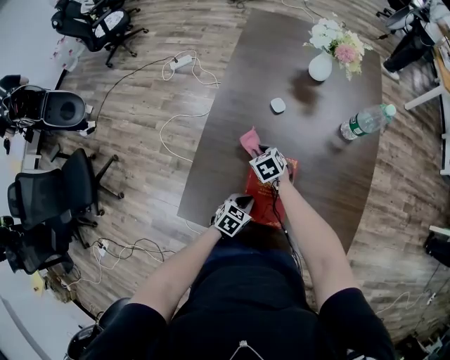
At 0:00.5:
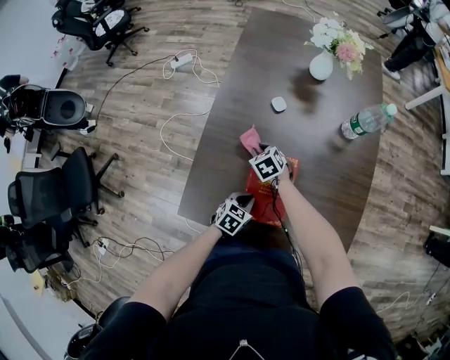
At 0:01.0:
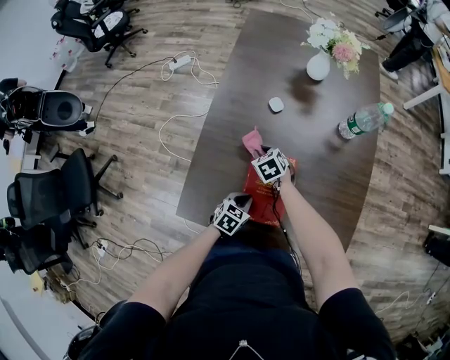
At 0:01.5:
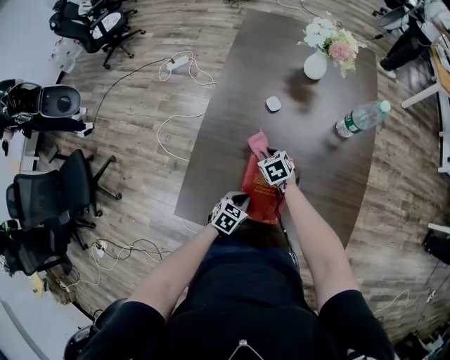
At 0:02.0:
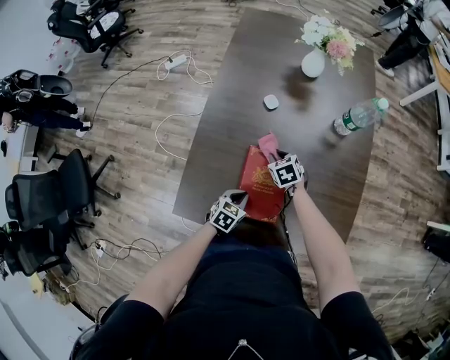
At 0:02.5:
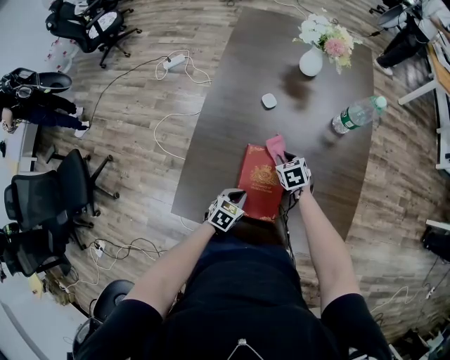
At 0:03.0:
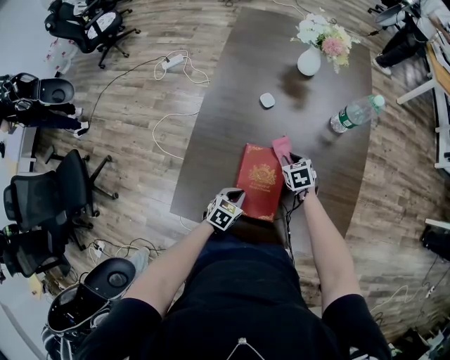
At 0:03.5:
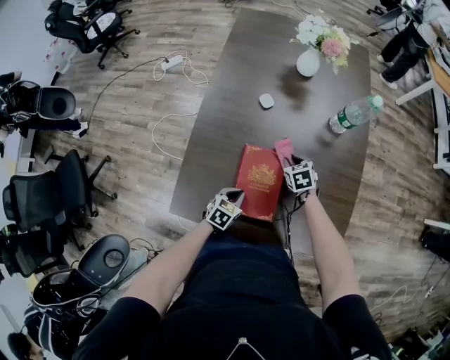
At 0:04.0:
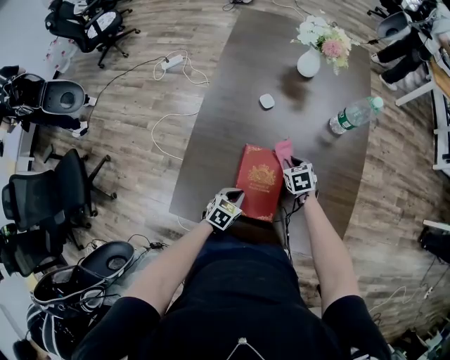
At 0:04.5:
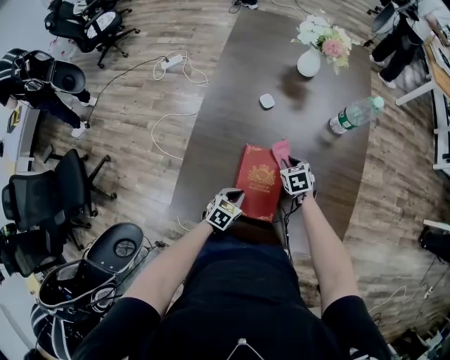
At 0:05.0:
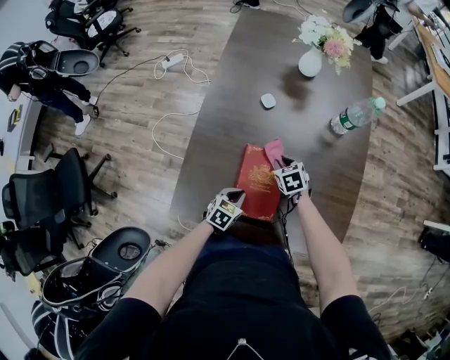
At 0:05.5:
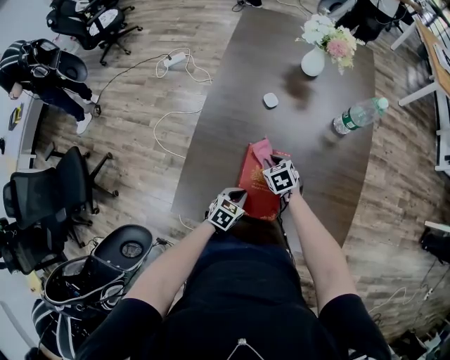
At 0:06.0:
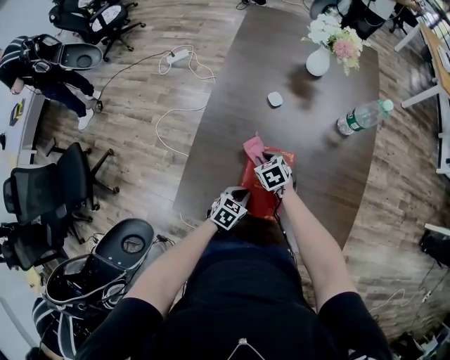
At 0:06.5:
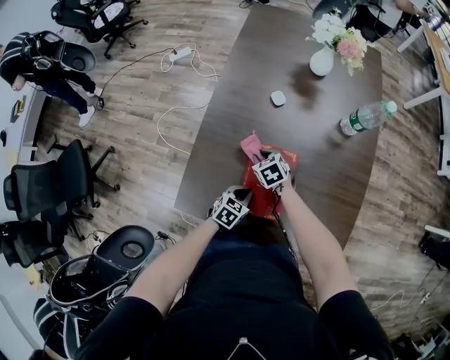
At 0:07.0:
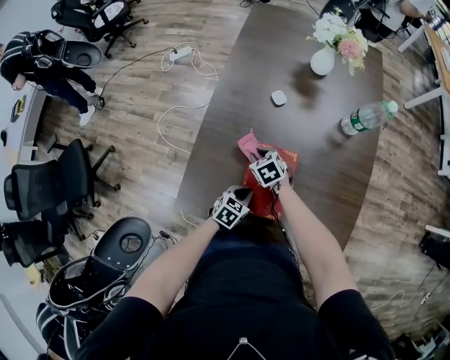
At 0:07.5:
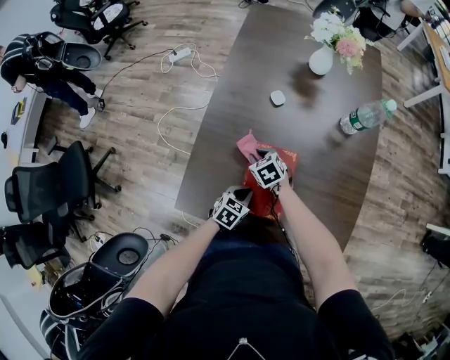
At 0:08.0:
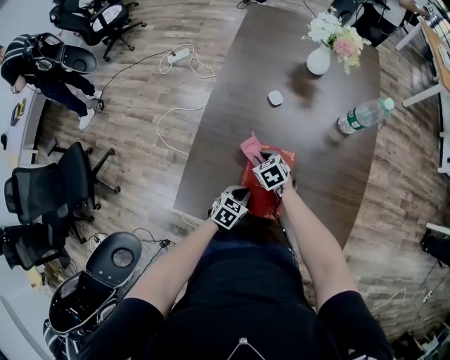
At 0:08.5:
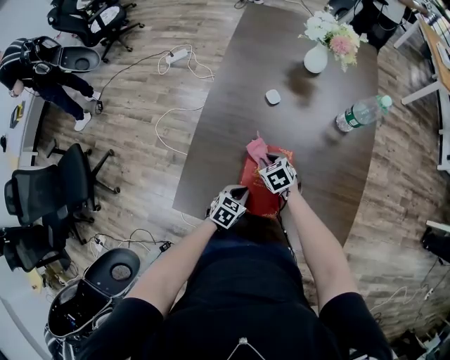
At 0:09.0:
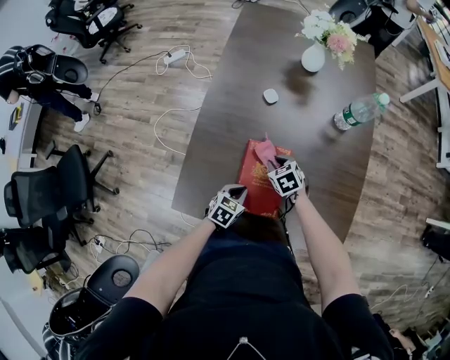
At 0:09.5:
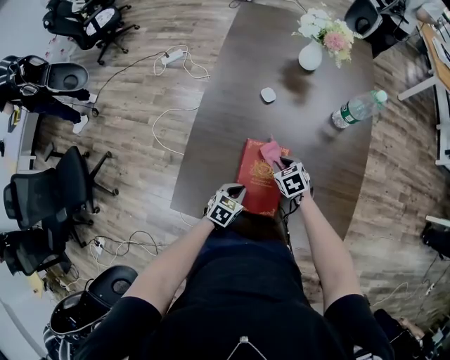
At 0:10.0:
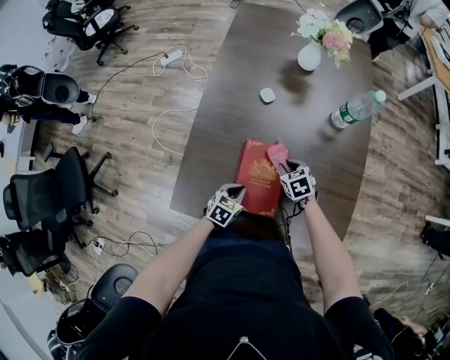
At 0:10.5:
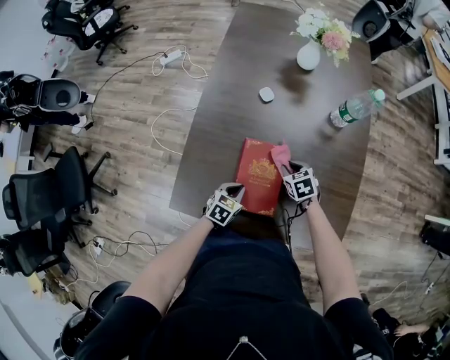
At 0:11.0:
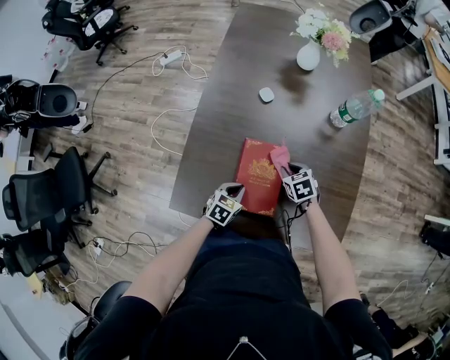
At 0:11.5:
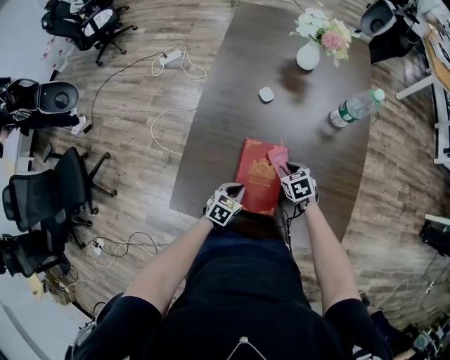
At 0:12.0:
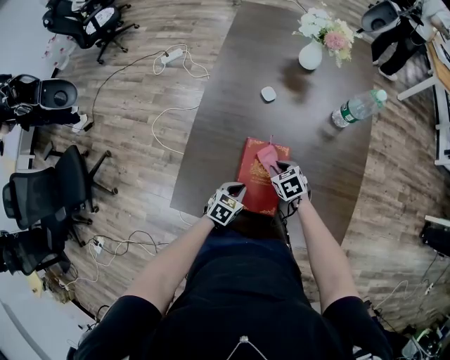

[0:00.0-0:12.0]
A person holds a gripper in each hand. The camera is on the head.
0:00.0 to 0:02.0: The right gripper moves to the right, some 10 cm.
0:02.0 to 0:04.0: The right gripper shifts approximately 10 cm to the right.
0:04.0 to 0:06.0: The right gripper heads to the left, covering roughly 15 cm.
0:06.0 to 0:08.0: The grippers move only a little.
0:08.0 to 0:10.0: The right gripper shifts about 15 cm to the right.
0:10.0 to 0:12.0: There are only small adjustments of the grippers.

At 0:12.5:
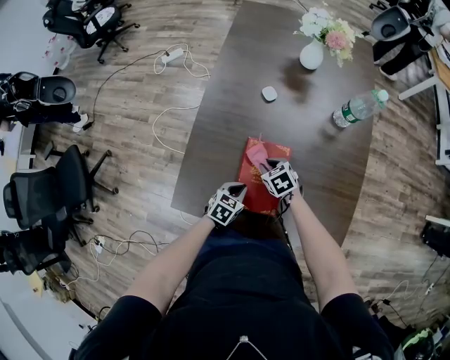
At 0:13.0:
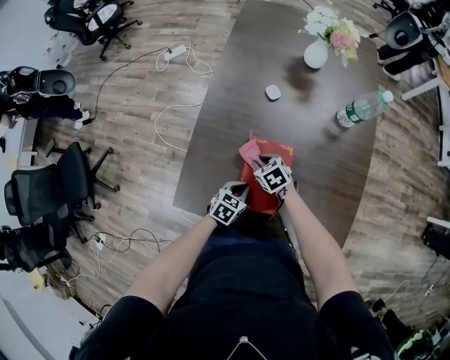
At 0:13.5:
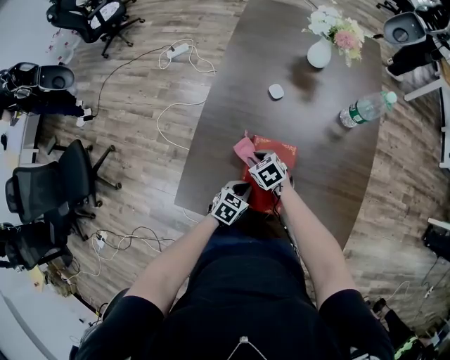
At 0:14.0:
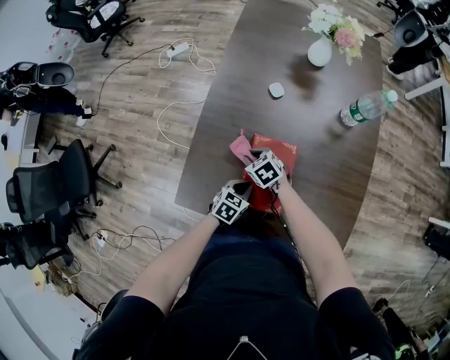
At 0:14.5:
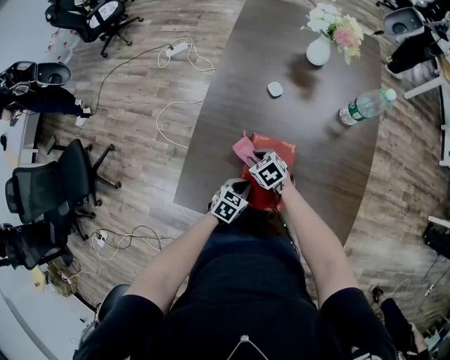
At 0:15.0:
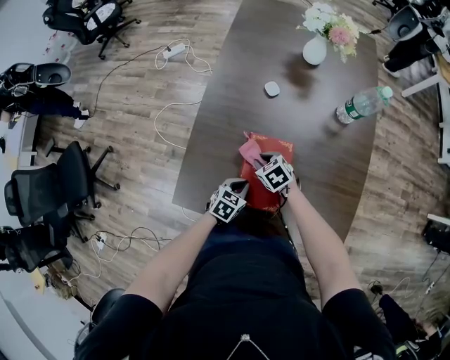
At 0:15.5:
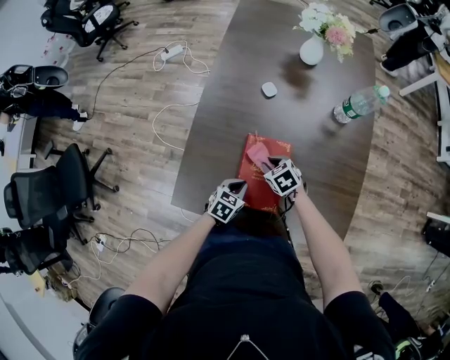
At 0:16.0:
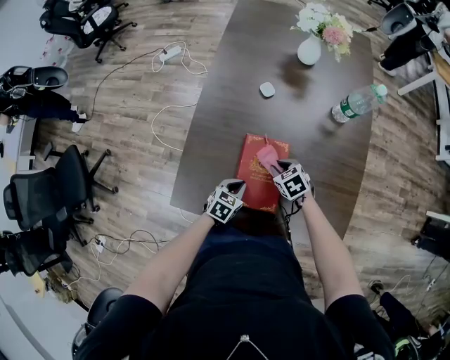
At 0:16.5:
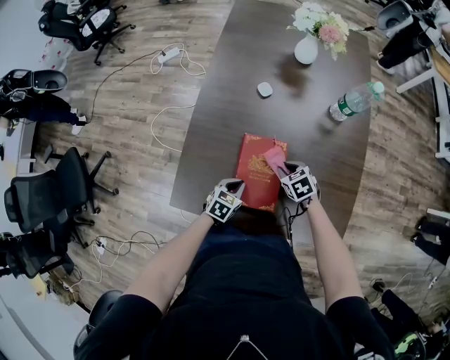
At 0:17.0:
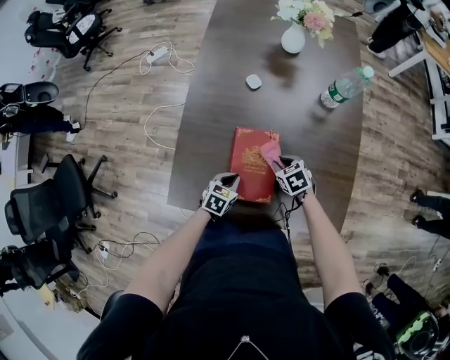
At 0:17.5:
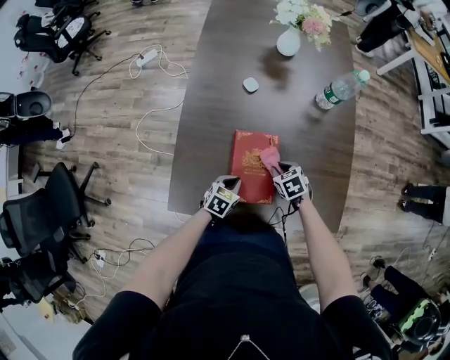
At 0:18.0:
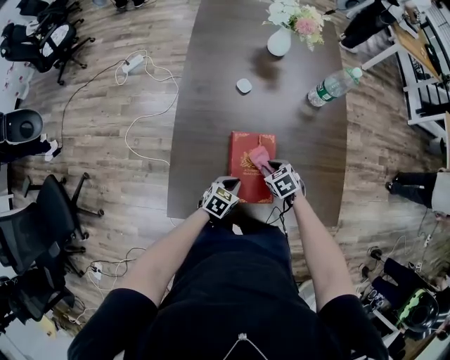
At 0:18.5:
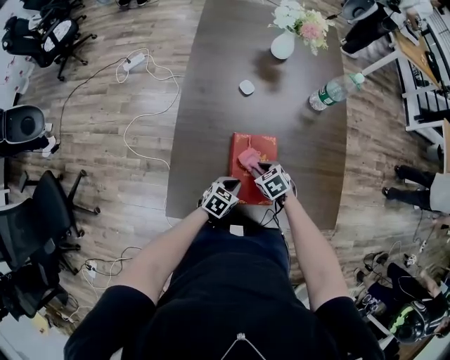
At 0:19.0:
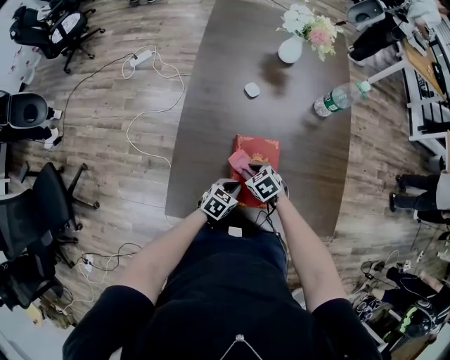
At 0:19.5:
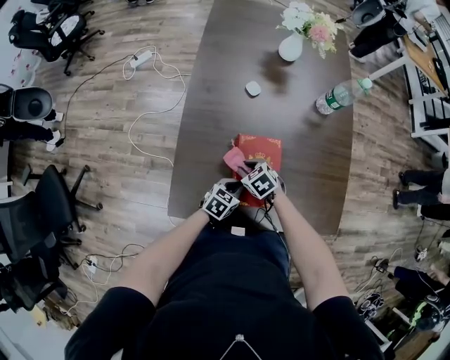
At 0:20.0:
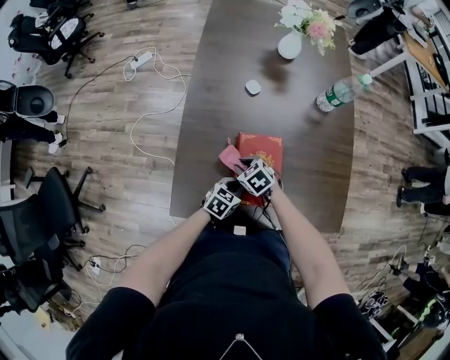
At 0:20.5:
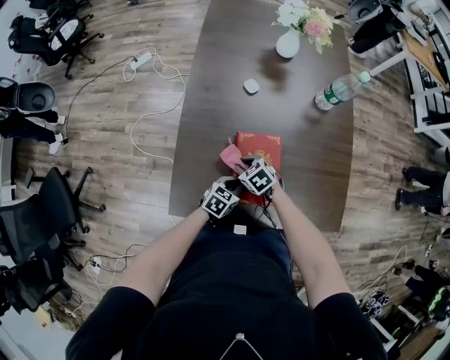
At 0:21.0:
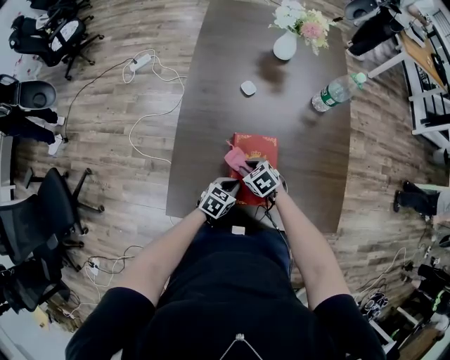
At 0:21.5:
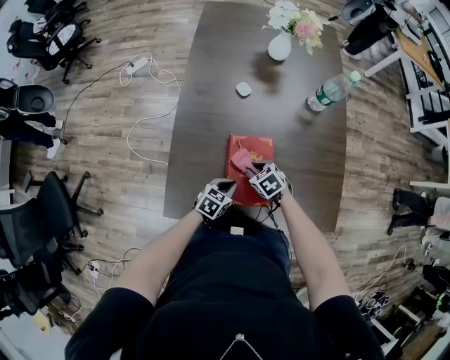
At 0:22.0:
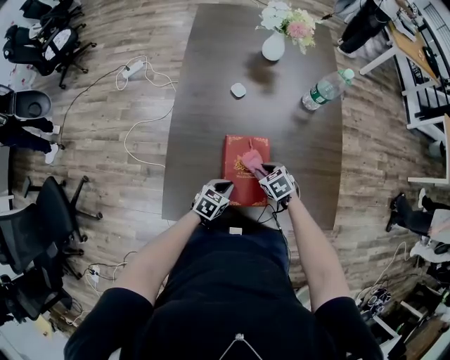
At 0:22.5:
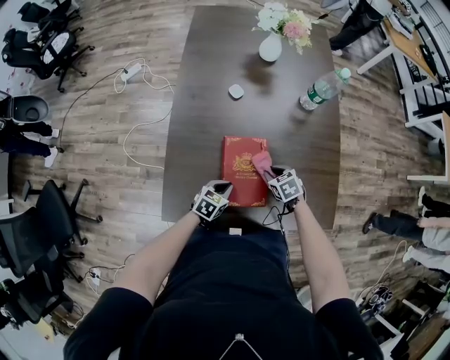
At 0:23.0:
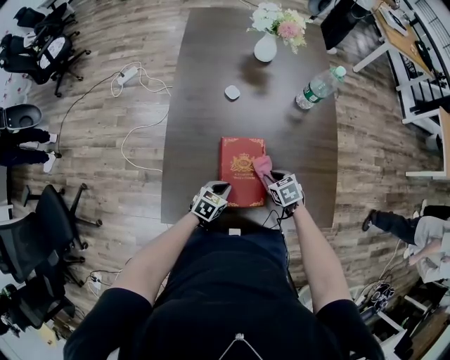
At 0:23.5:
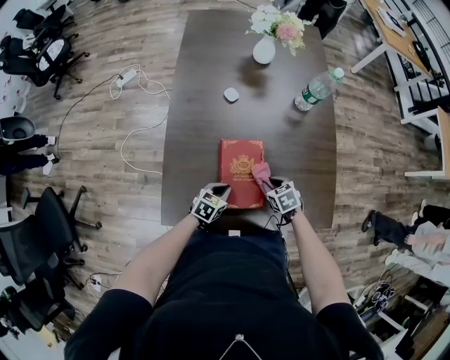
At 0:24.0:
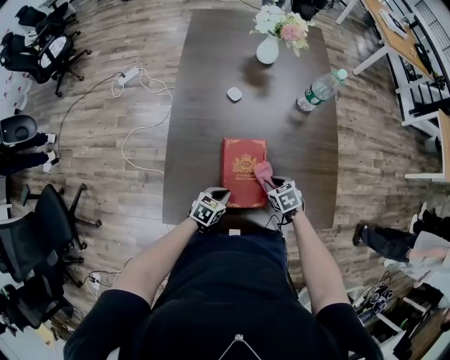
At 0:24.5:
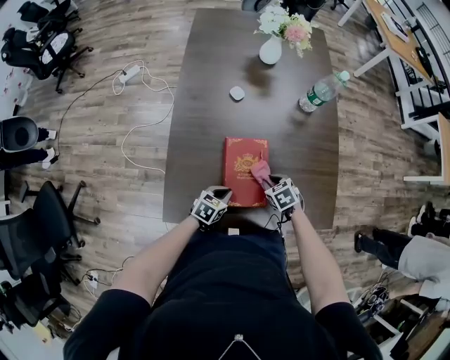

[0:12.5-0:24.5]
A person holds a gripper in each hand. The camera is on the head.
0:12.5 to 0:14.5: The right gripper shifts some 5 cm to the left.
0:14.5 to 0:16.5: The right gripper goes approximately 15 cm to the right.
0:16.5 to 0:18.5: The right gripper heads to the left, covering roughly 5 cm.
0:18.5 to 0:20.5: The right gripper heads to the left, covering roughly 10 cm.
0:20.5 to 0:22.5: The right gripper moves to the right, some 15 cm.
0:22.5 to 0:24.5: The grippers stay close to where they were, moving slightly.

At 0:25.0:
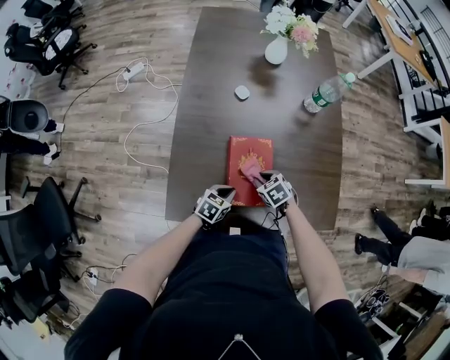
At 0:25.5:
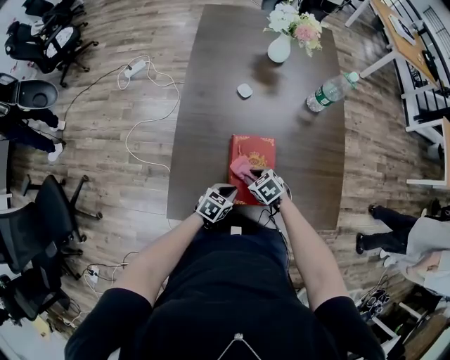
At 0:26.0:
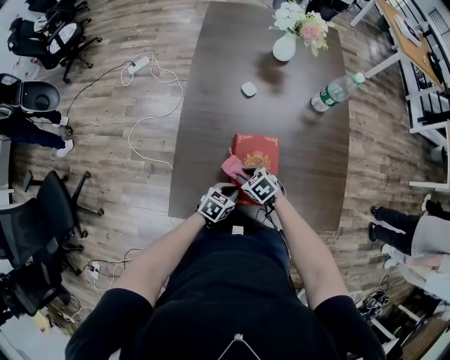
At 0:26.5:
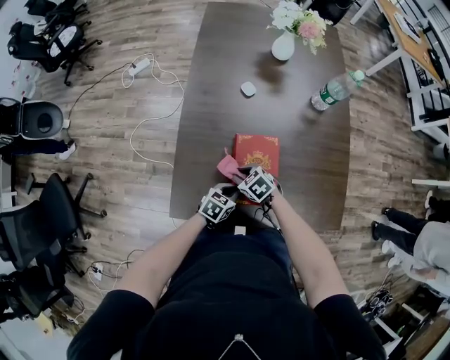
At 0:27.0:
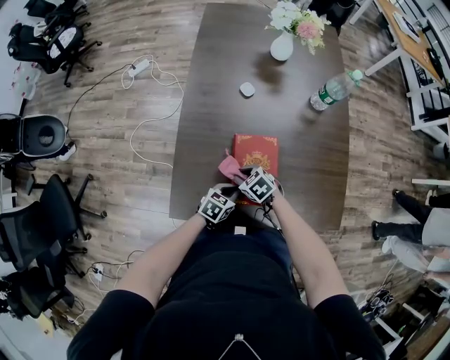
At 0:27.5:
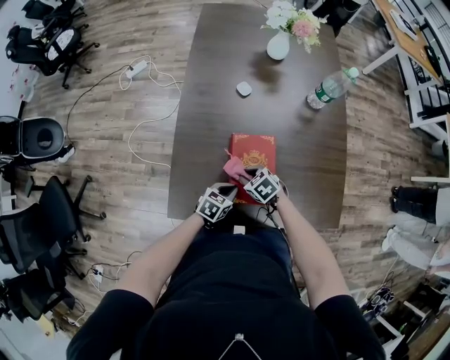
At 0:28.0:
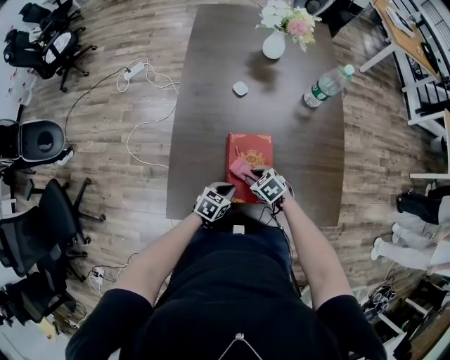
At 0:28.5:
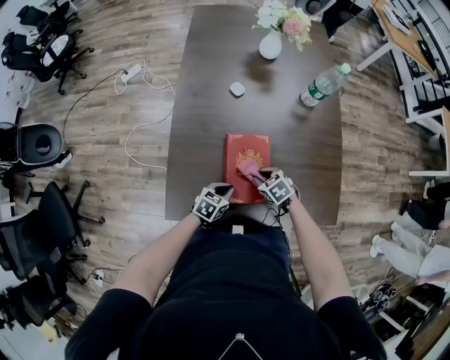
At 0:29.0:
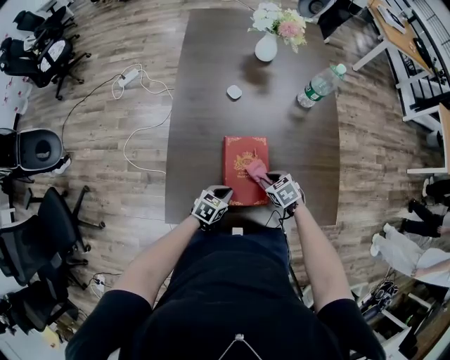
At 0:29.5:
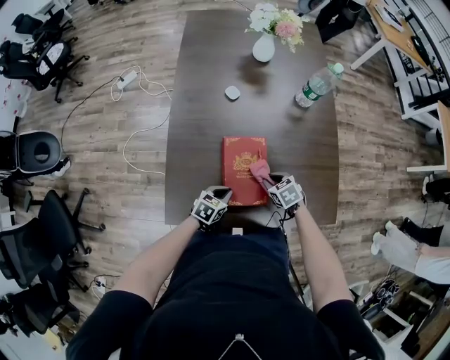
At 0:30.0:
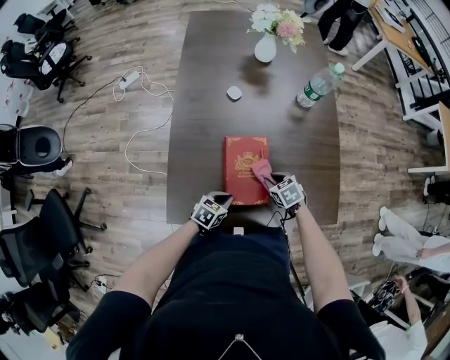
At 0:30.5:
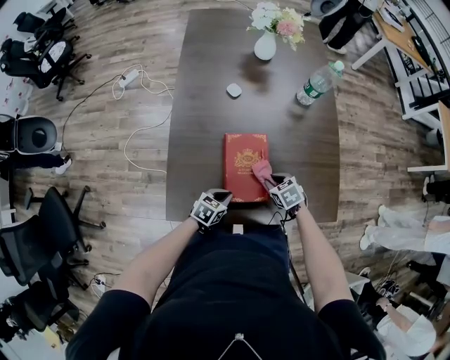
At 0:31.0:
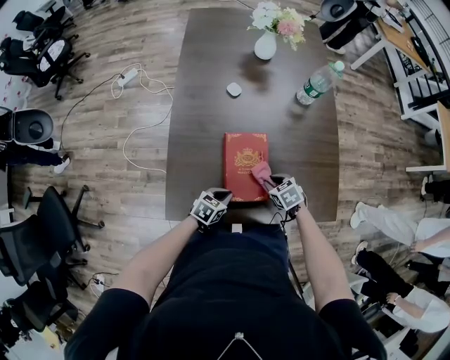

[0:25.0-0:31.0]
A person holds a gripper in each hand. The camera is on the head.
0:25.0 to 0:27.0: The right gripper shifts by some 10 cm.
0:27.0 to 0:29.0: The right gripper ends up roughly 15 cm from where it was.
0:29.0 to 0:31.0: The grippers stay close to where they were, moving slightly.
